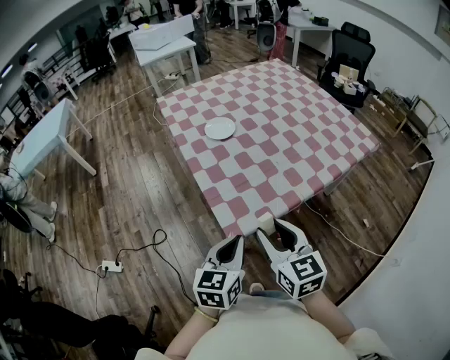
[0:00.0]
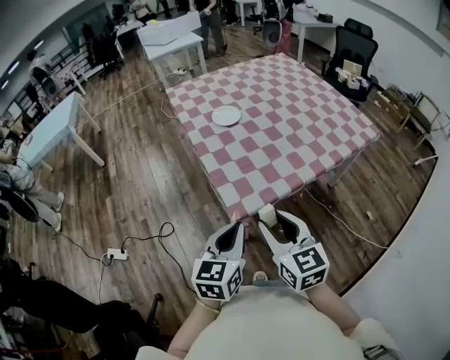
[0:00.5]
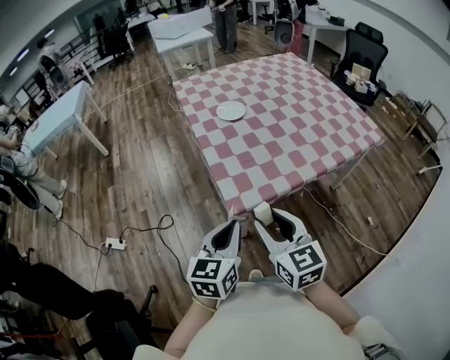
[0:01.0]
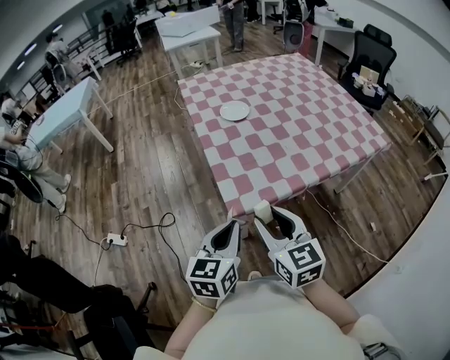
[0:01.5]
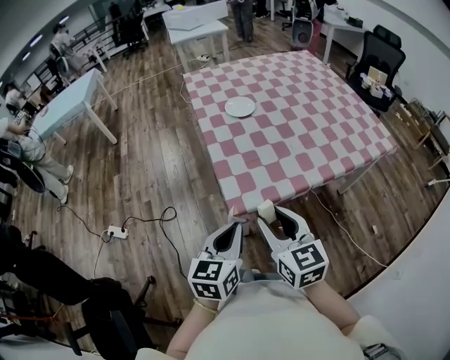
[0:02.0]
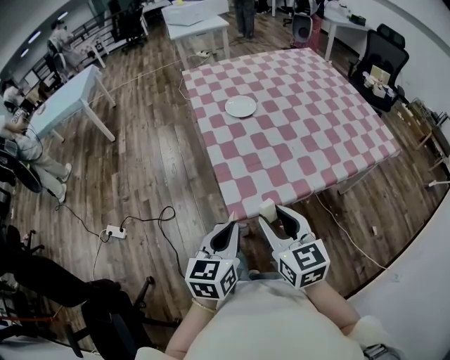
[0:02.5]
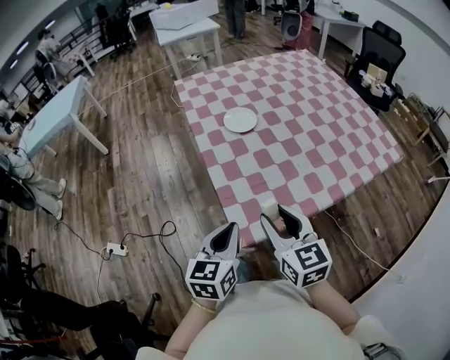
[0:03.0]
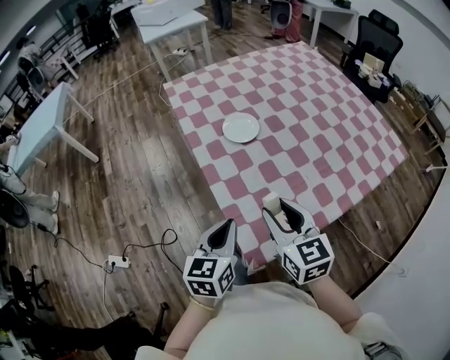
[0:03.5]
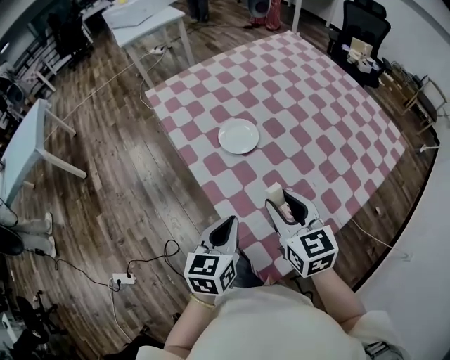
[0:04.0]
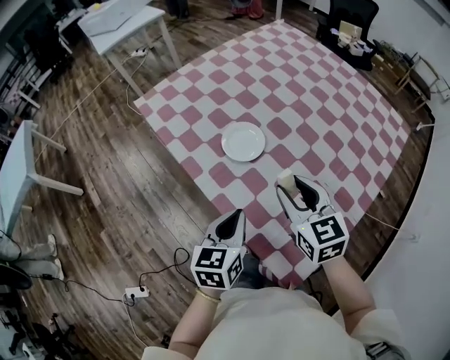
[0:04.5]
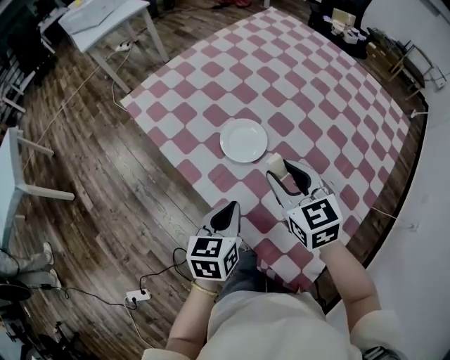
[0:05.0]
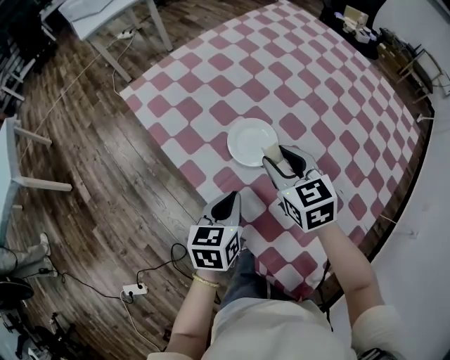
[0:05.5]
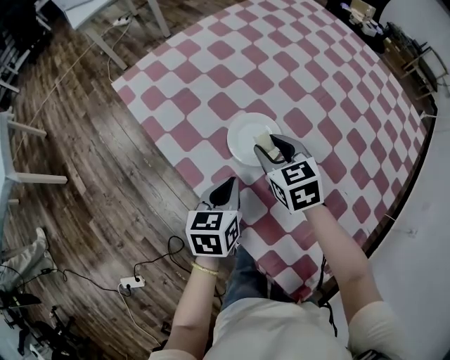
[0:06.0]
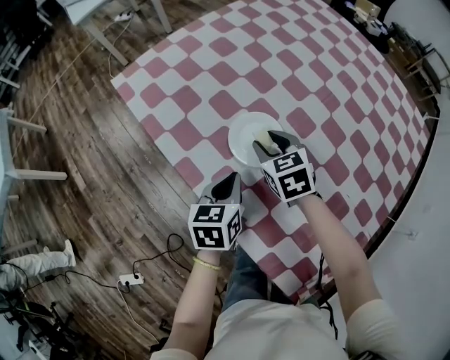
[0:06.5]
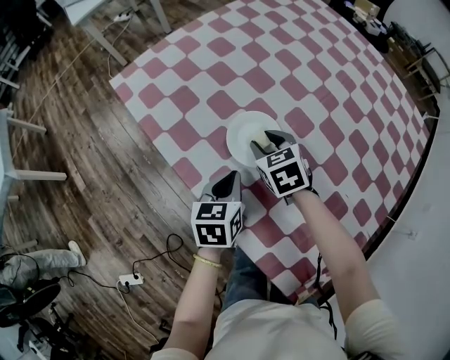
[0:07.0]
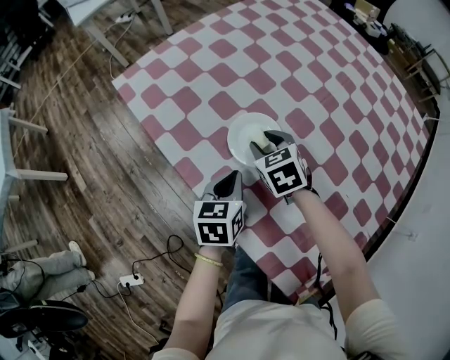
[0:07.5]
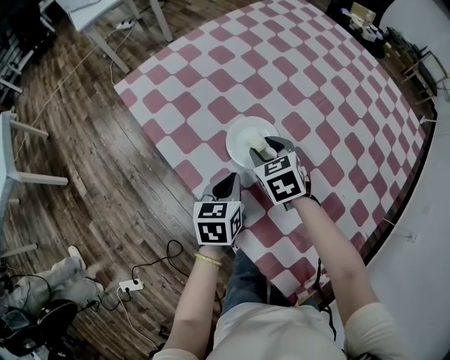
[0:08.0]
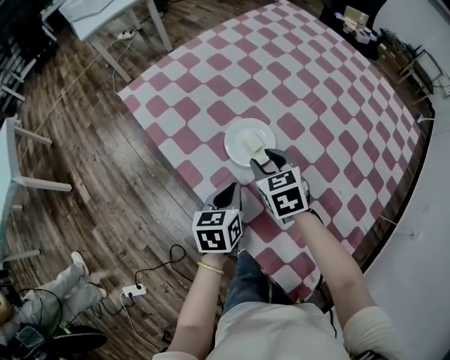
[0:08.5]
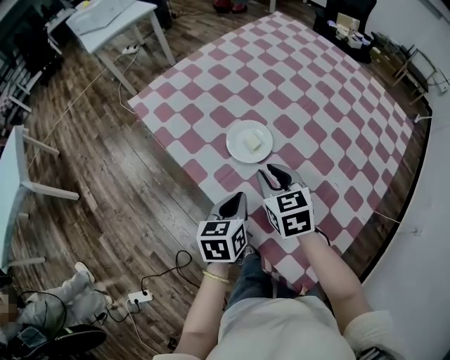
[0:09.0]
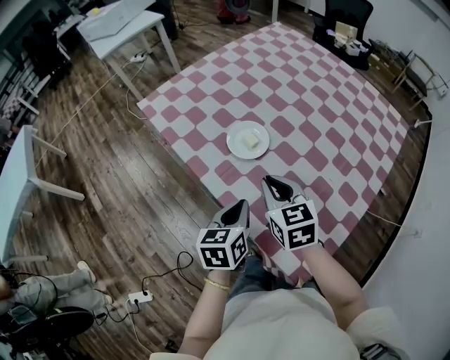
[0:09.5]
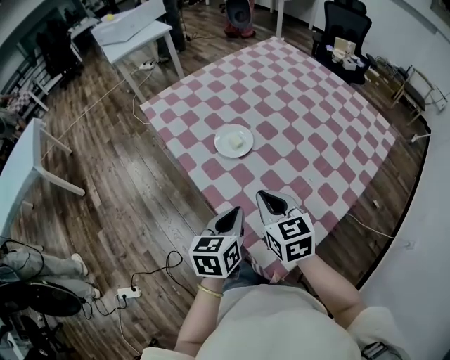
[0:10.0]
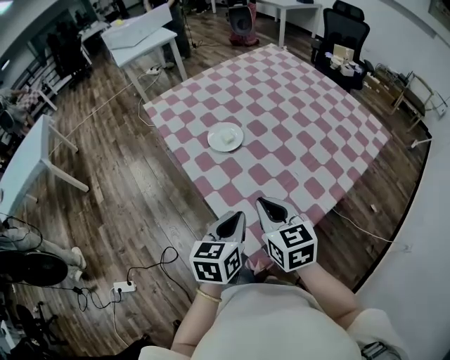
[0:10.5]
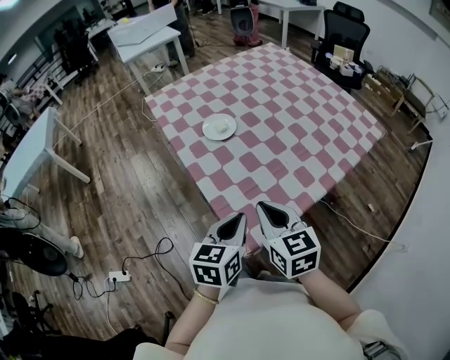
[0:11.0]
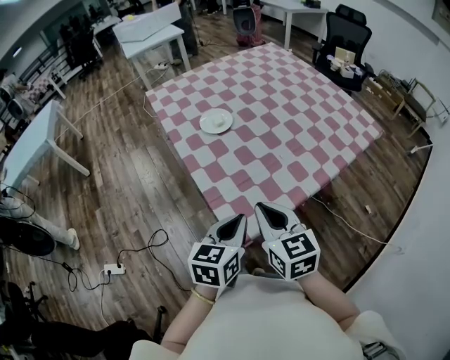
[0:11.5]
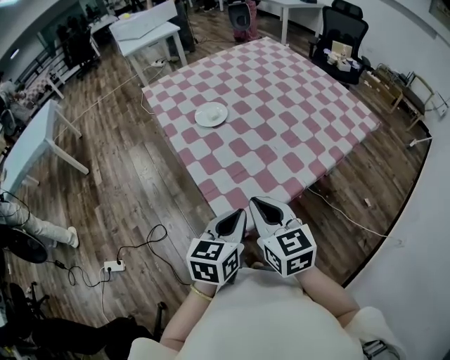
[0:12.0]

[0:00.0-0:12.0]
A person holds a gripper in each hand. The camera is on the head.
0:00.0 to 0:02.0: The left gripper shifts about 5 cm backward.
0:02.0 to 0:04.0: The grippers both shift forward by some 35 cm.
0:04.0 to 0:06.0: Both grippers travel together forward and downward, roughly 30 cm.
0:06.0 to 0:08.0: The grippers make only small movements.
0:08.0 to 0:10.0: The grippers both shift backward and upward by about 30 cm. The right gripper rotates approximately 20 degrees, and closes up.
0:10.0 to 0:12.0: Both grippers move backward and to the right, roughly 25 cm.

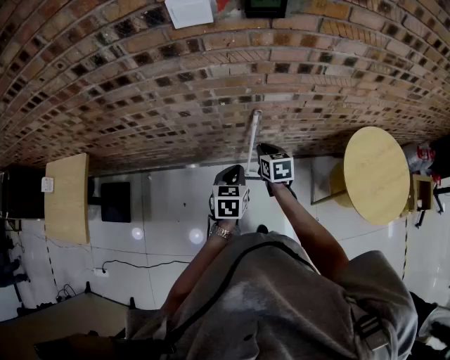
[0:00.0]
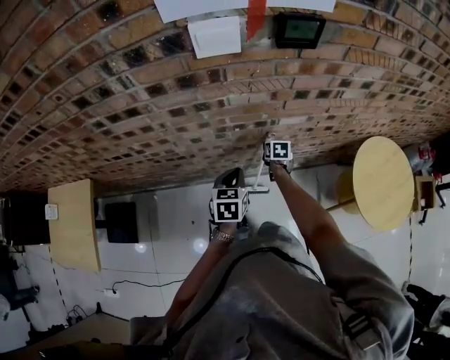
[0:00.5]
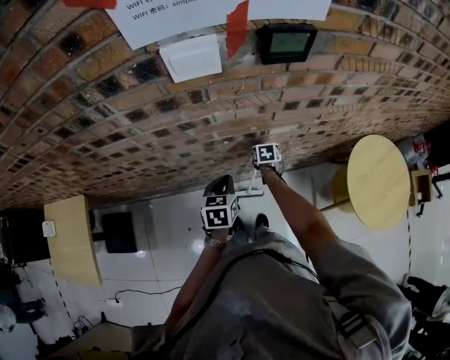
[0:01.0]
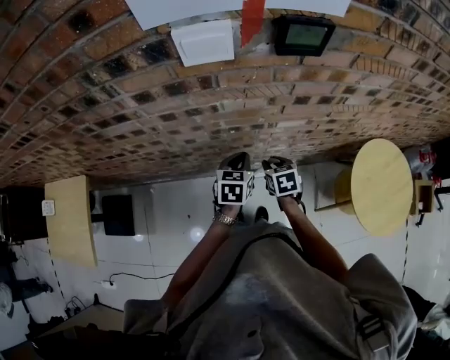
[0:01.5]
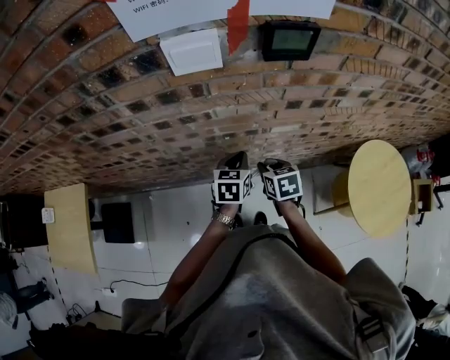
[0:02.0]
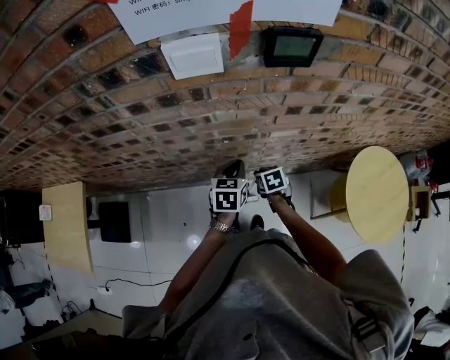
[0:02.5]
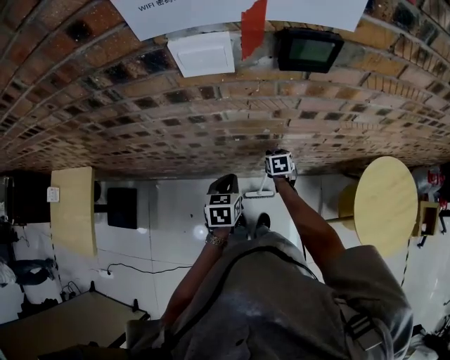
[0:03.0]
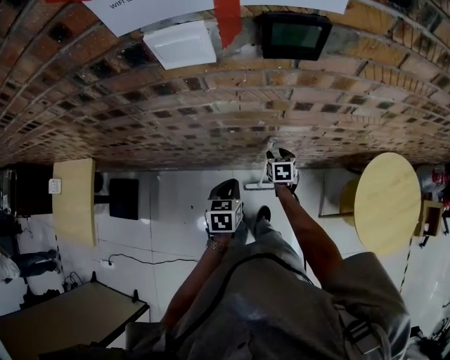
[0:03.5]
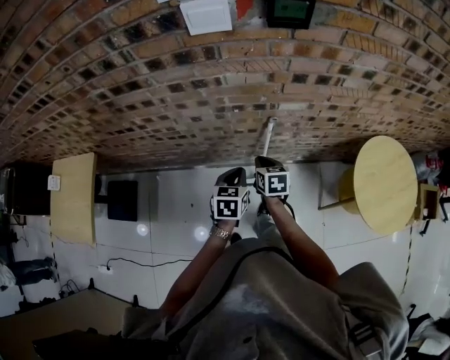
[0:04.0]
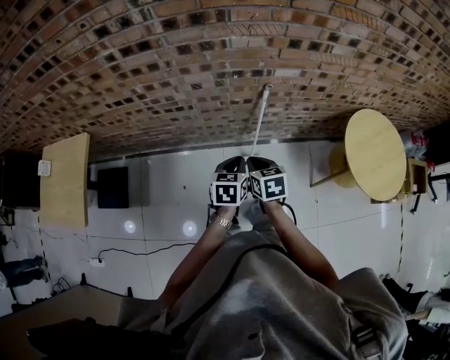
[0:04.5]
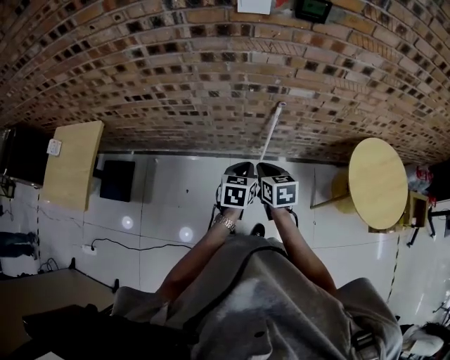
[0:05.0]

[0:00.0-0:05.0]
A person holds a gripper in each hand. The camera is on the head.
0:00.0 to 0:02.5: The left gripper goes approximately 15 cm forward; the right gripper goes about 10 cm downward and forward, rotates about 20 degrees, and opens.
0:02.5 to 0:05.0: The left gripper travels backward by about 25 cm. Meanwhile the right gripper goes approximately 30 cm backward and upward, and closes up.

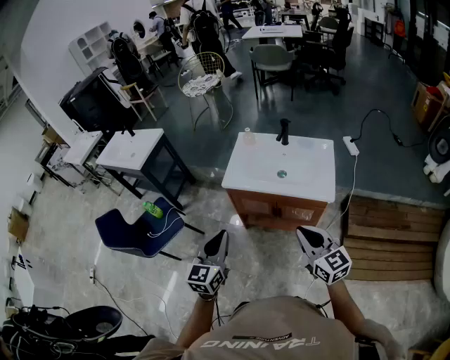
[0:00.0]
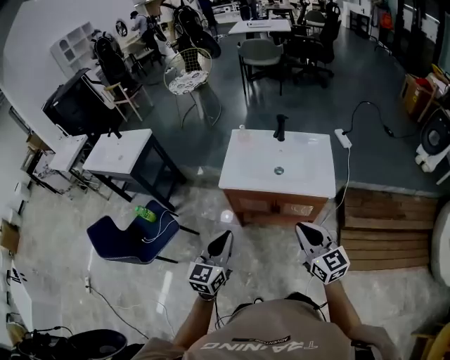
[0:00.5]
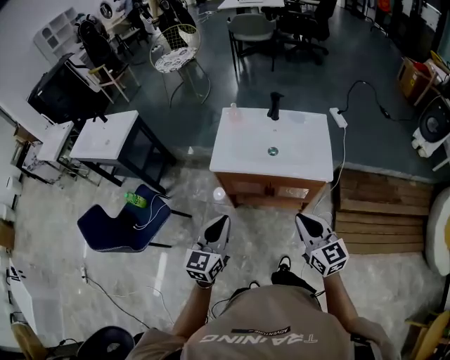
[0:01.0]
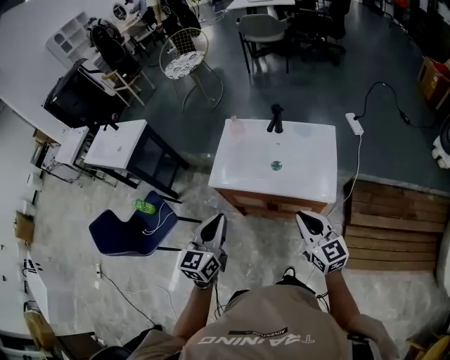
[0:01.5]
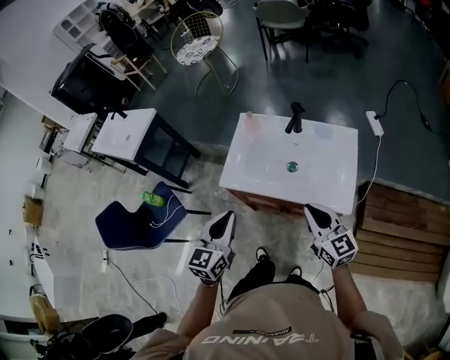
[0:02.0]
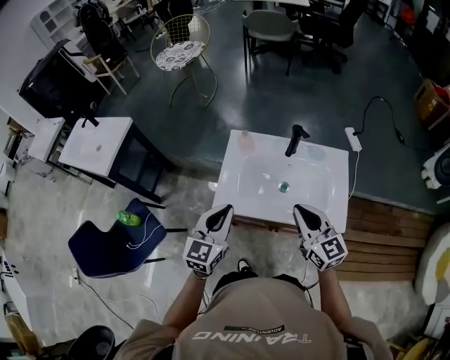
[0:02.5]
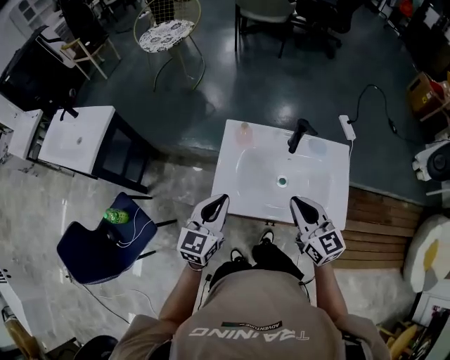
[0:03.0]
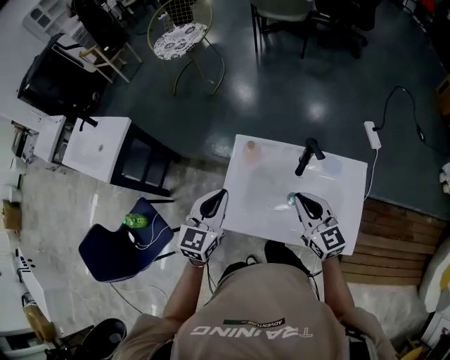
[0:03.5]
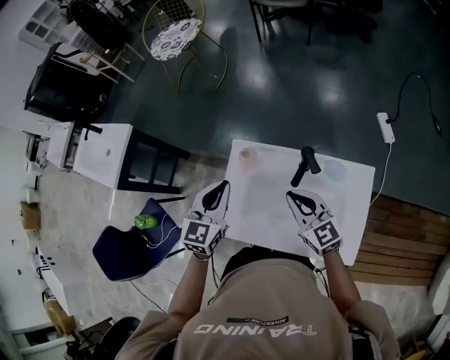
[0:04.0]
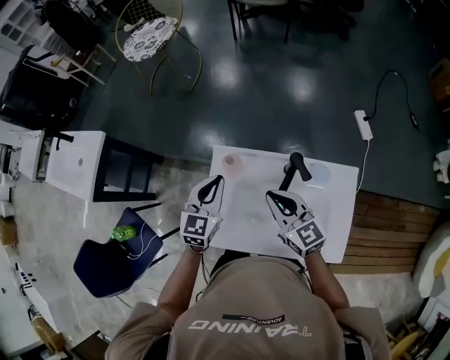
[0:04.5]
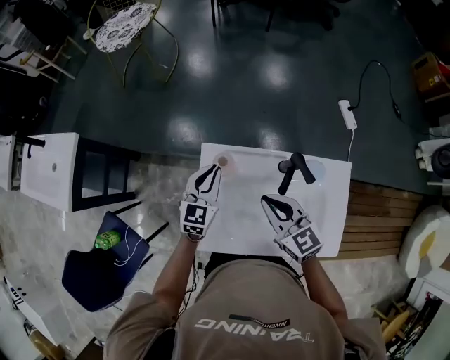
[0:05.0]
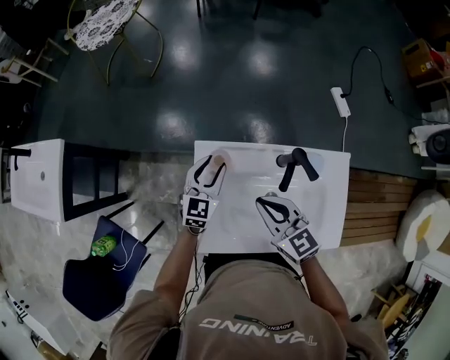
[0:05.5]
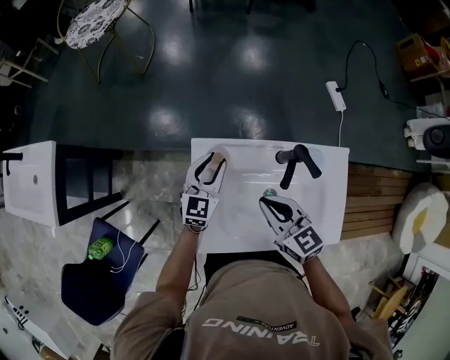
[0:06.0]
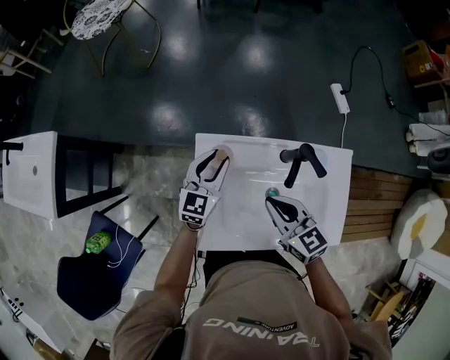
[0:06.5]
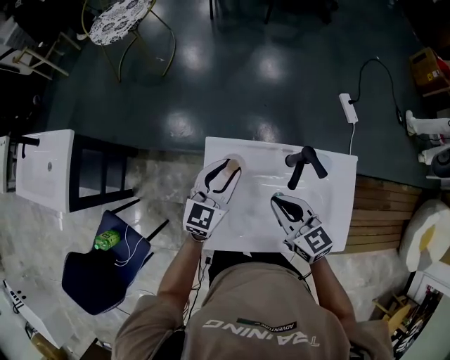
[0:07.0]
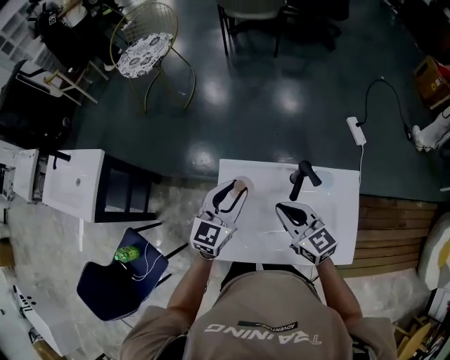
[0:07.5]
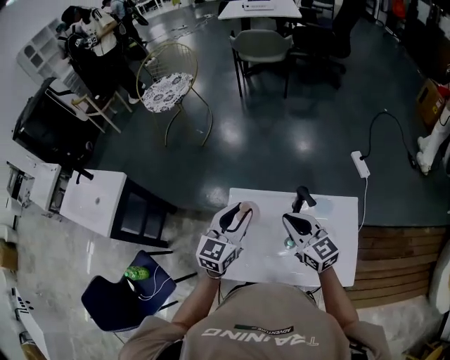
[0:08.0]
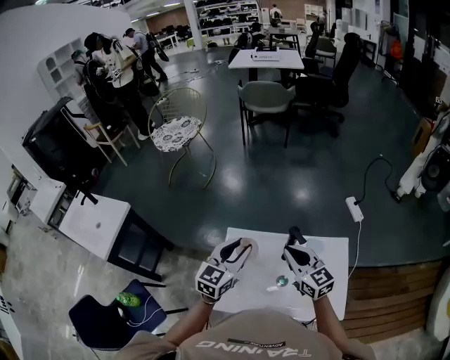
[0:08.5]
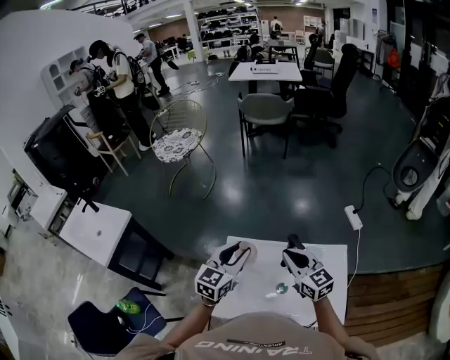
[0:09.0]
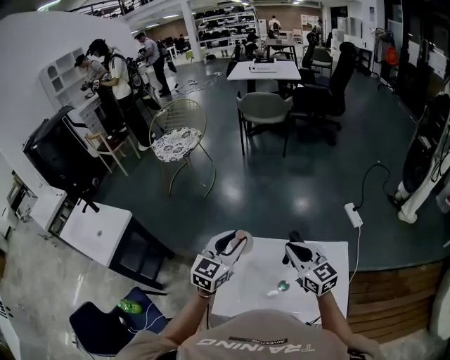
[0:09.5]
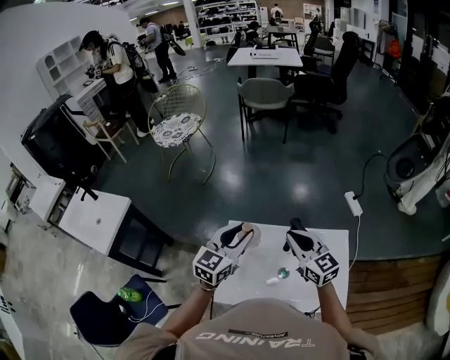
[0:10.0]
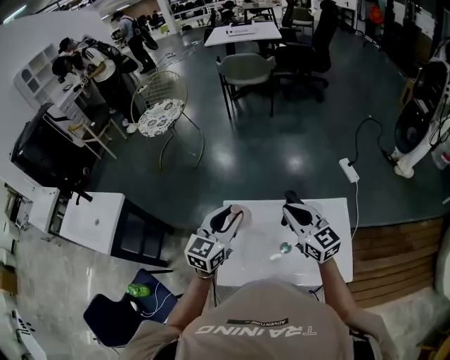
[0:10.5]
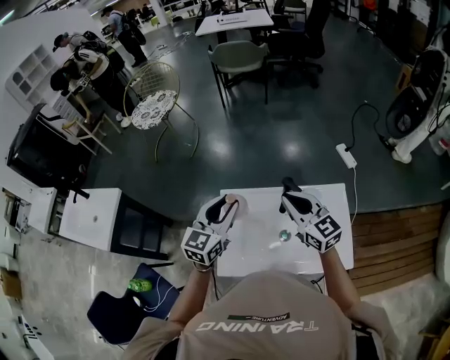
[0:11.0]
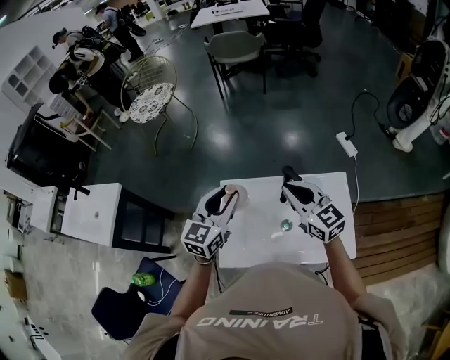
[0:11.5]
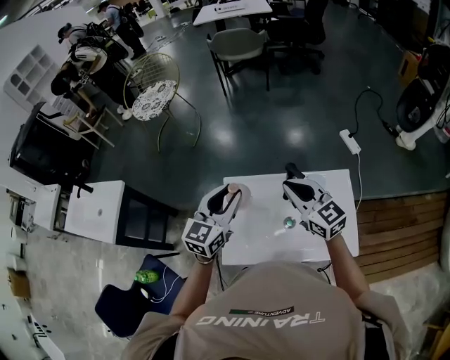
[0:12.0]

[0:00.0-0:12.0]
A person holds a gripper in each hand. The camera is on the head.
0:00.0 to 0:02.0: Both grippers travel together forward, approximately 20 cm.
0:02.0 to 0:04.0: Both grippers travel together forward, approximately 30 cm.
0:04.0 to 0:06.0: The left gripper heads downward and forward, covering approximately 20 cm, and opens, while the right gripper ends up some 5 cm from where it was.
0:06.0 to 0:08.0: The right gripper travels upward by some 10 cm, while the left gripper goes roughly 15 cm upward.
0:08.0 to 0:10.0: The right gripper ends up approximately 5 cm from where it was. The left gripper ends up some 5 cm from where it was.
0:10.0 to 0:12.0: There are only small adjustments of the grippers.
